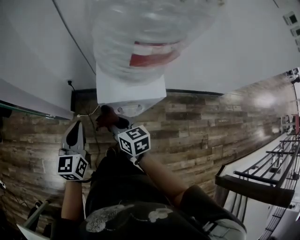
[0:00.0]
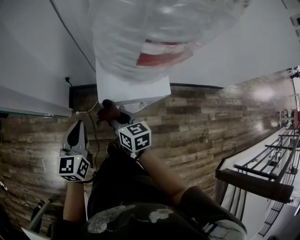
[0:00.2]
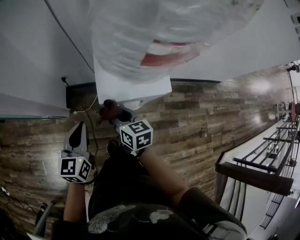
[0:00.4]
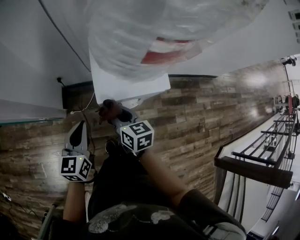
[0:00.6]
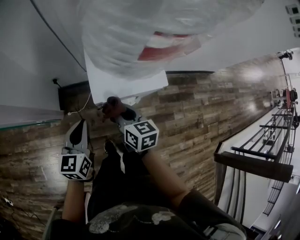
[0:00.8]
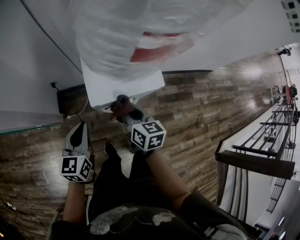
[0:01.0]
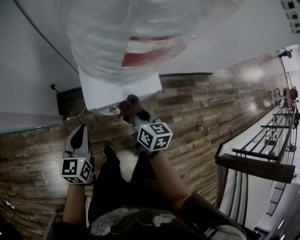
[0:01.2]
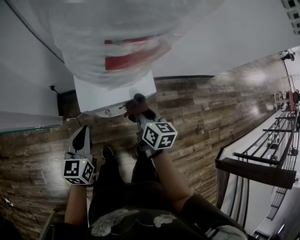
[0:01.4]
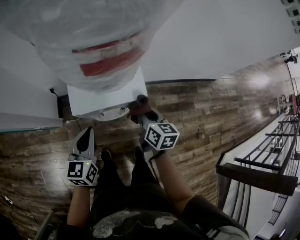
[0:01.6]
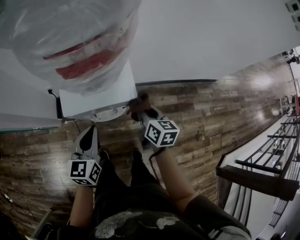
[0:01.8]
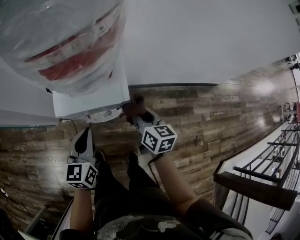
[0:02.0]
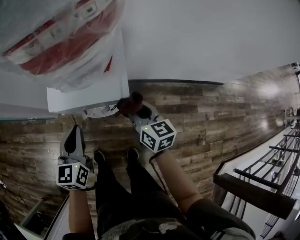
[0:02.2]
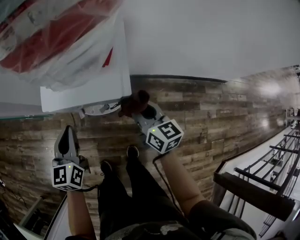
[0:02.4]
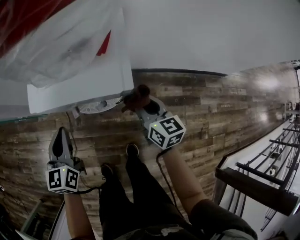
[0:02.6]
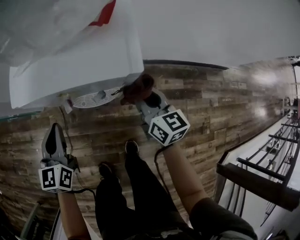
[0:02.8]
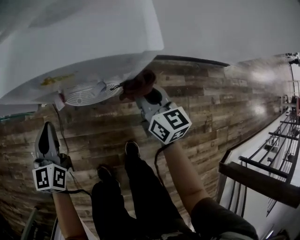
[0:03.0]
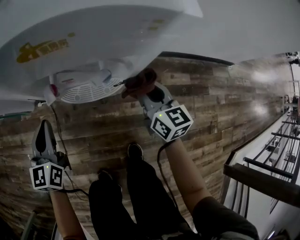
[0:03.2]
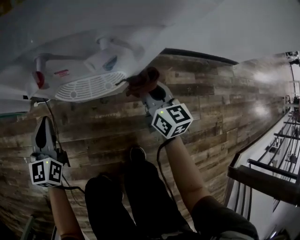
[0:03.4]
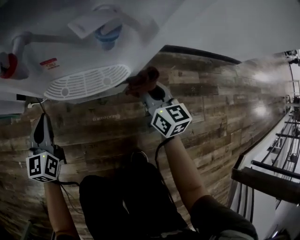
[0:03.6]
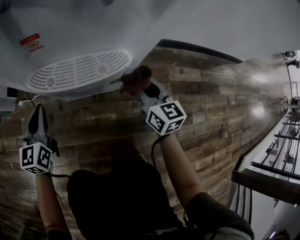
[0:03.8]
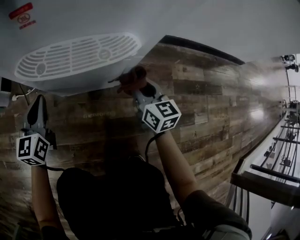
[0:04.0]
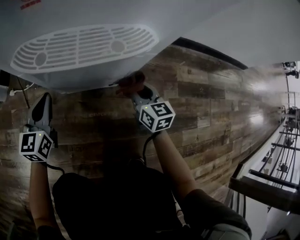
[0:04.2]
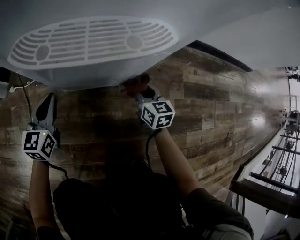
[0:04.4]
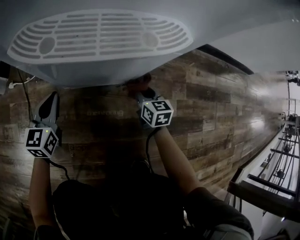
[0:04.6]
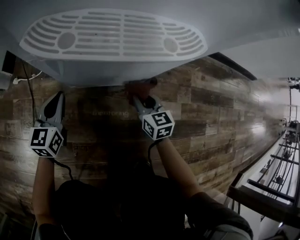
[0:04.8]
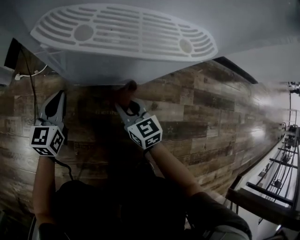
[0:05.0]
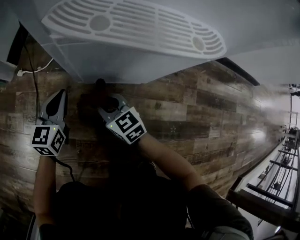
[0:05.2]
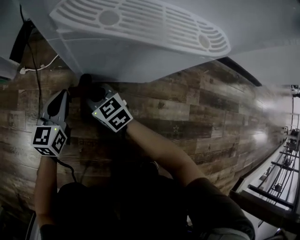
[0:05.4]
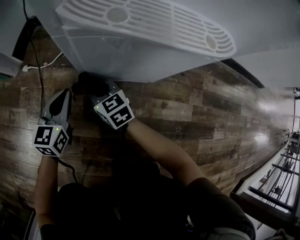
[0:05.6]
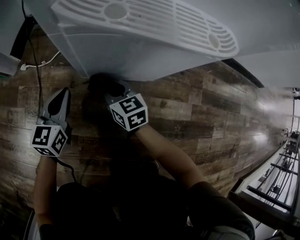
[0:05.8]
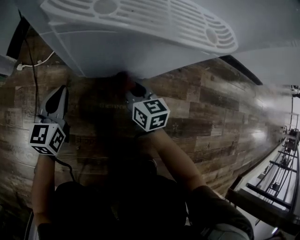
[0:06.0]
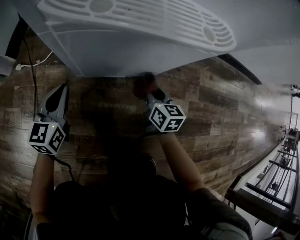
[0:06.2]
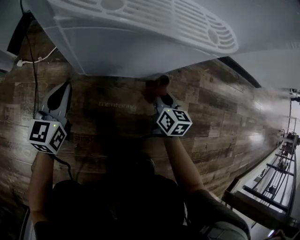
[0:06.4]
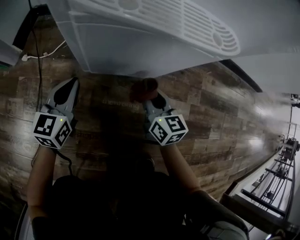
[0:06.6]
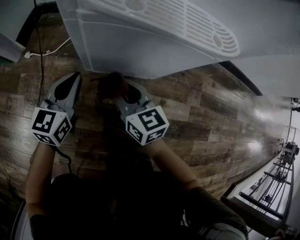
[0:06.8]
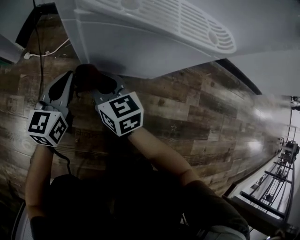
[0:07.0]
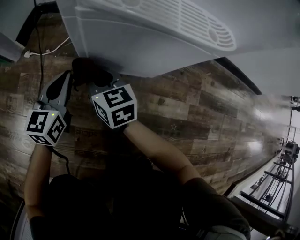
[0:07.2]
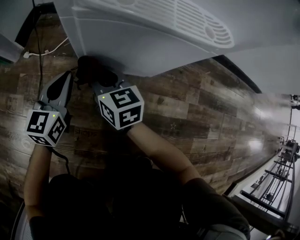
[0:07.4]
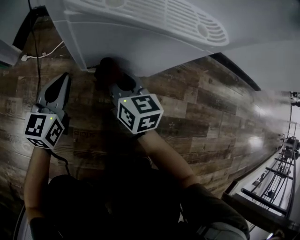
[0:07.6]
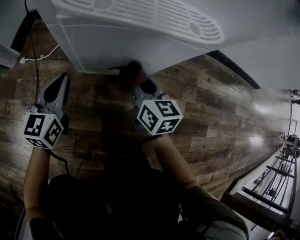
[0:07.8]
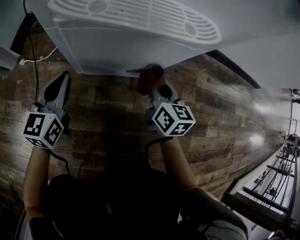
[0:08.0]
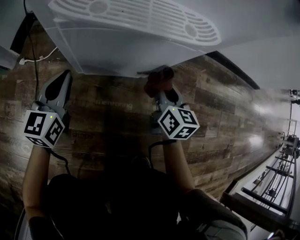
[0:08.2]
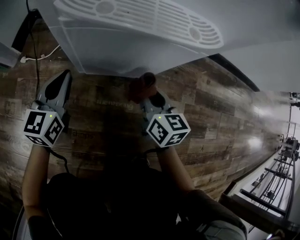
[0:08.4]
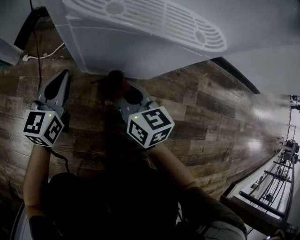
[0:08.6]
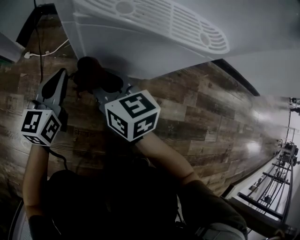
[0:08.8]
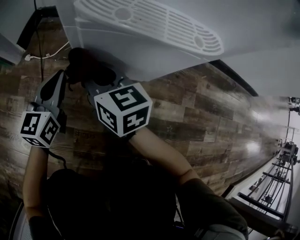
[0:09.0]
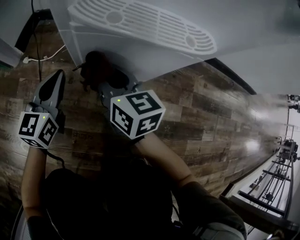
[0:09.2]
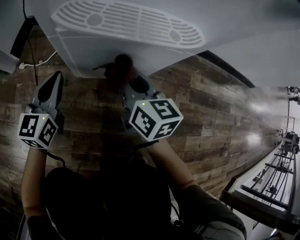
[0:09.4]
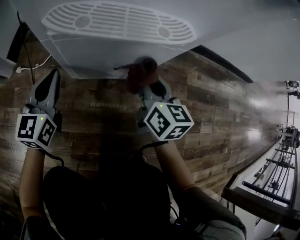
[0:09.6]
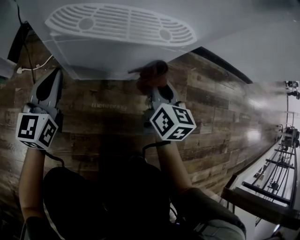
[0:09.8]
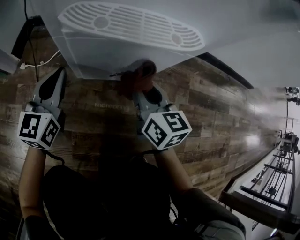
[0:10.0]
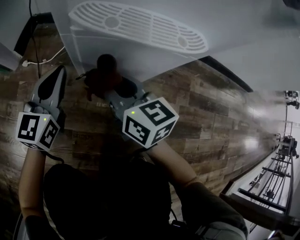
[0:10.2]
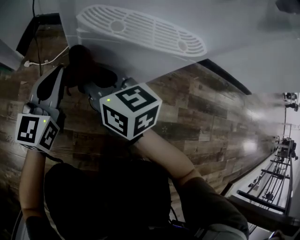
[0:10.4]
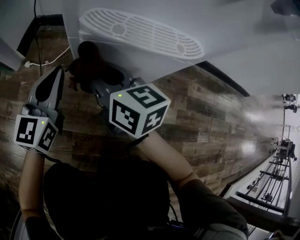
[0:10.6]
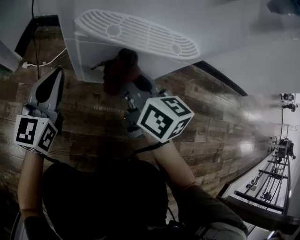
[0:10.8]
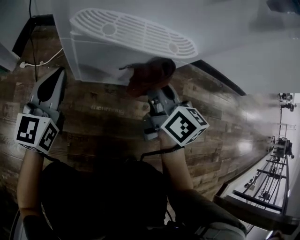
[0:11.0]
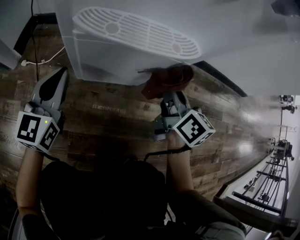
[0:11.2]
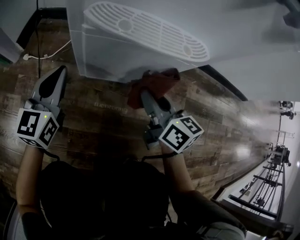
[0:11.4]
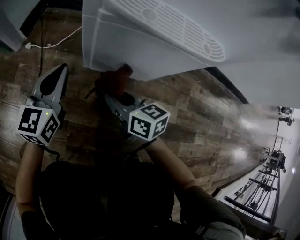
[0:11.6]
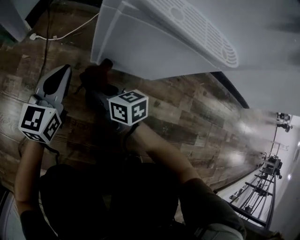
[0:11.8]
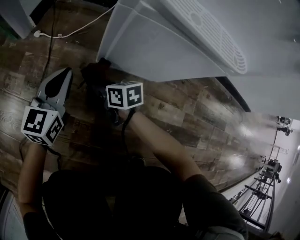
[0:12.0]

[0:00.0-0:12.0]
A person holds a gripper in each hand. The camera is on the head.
0:00.0 to 0:01.6: The left gripper travels to the right and downward by some 15 cm, while the right gripper is displaced to the right by approximately 20 cm, and changes its angle by some 30 degrees.
0:01.6 to 0:03.0: Both grippers move downward, roughly 20 cm. The right gripper turns by roughly 20 degrees.
0:03.0 to 0:04.4: The grippers both shift downward by some 40 cm.
0:04.4 to 0:06.0: The left gripper changes place by about 5 cm; the right gripper is displaced to the left by some 15 cm.
0:06.0 to 0:07.6: The right gripper moves left and right over approximately 30 cm, changing direction 2 times, while the left gripper is displaced upward by roughly 5 cm.
0:07.6 to 0:09.0: The right gripper travels upward by approximately 5 cm, and travels to the right and back again, some 20 cm each way.
0:09.0 to 0:10.4: The grippers both shift upward by approximately 5 cm. The right gripper reaches approximately 25 cm to the right, then returns.
0:10.4 to 0:12.0: The right gripper travels downward by approximately 25 cm, and turns by approximately 30 degrees, while the left gripper travels downward by approximately 10 cm.

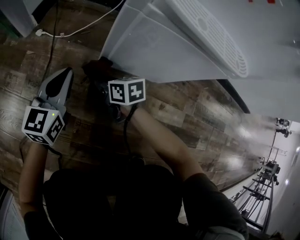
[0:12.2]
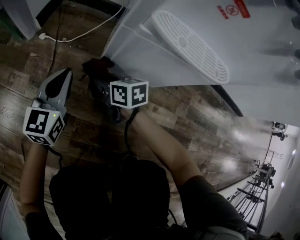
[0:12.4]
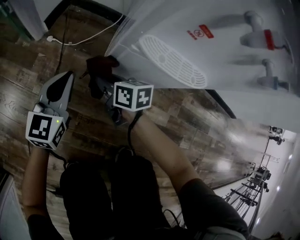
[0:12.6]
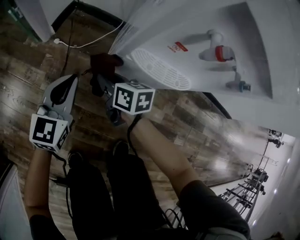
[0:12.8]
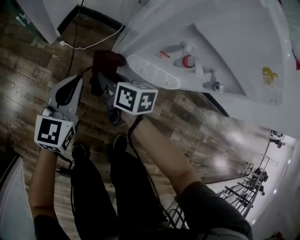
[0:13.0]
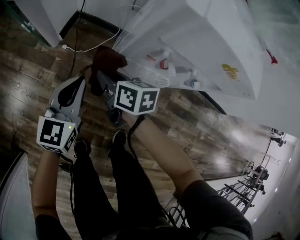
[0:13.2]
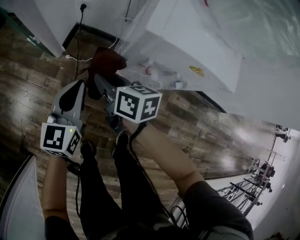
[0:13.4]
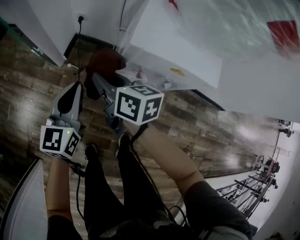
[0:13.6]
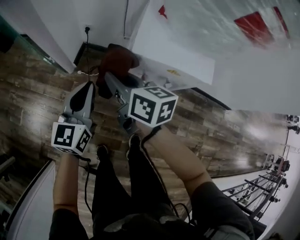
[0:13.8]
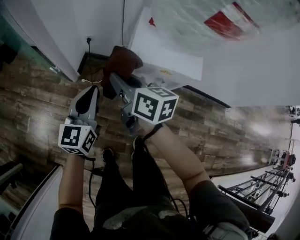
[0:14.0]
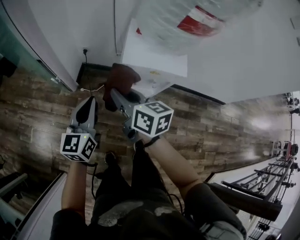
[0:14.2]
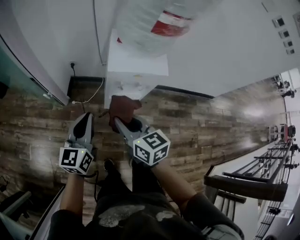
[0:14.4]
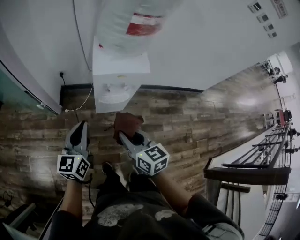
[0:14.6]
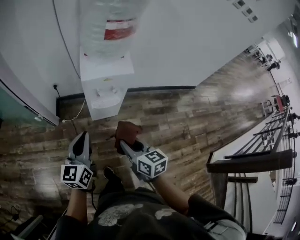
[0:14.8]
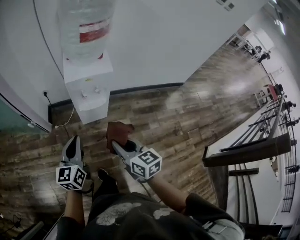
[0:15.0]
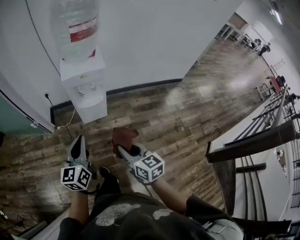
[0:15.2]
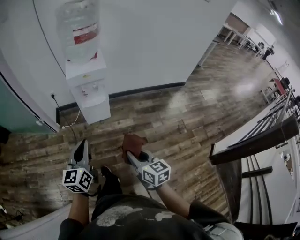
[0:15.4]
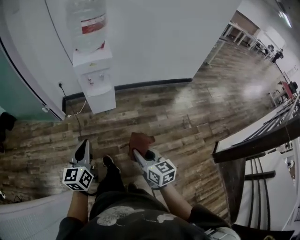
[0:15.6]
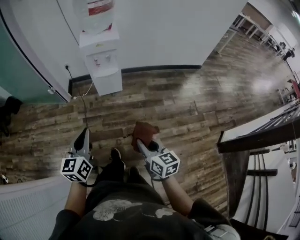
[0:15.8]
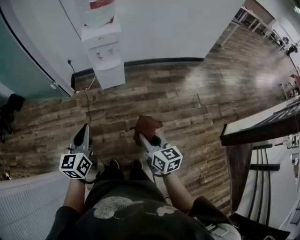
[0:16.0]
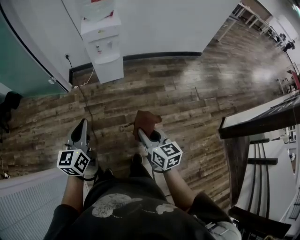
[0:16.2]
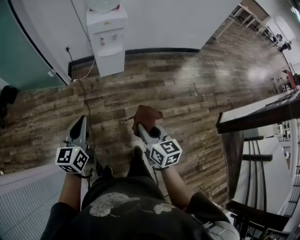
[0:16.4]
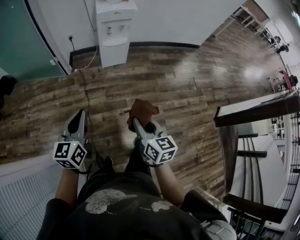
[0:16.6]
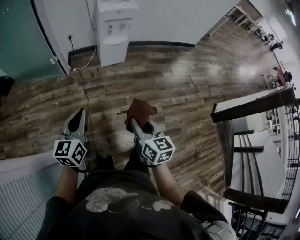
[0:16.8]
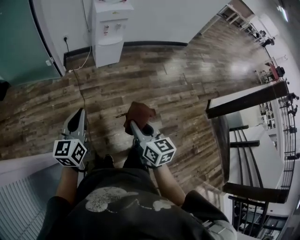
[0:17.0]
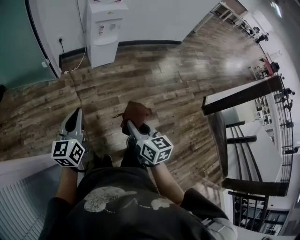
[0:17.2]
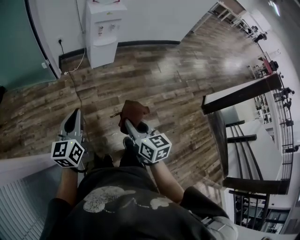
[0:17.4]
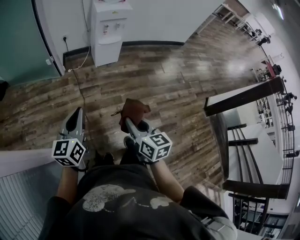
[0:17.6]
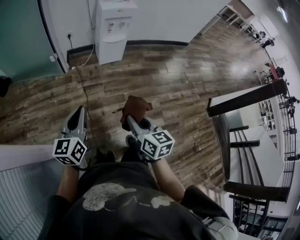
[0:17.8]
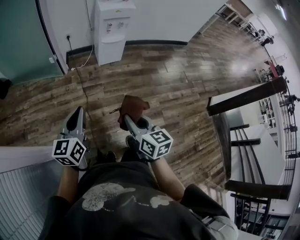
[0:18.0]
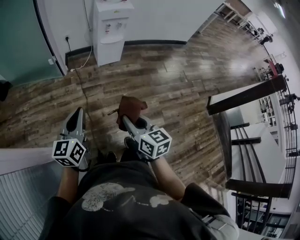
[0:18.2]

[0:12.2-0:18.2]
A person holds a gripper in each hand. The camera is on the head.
0:12.2 to 0:13.8: The two grippers go approximately 60 cm upward. The right gripper turns by approximately 20 degrees.
0:13.8 to 0:15.2: The left gripper shifts by approximately 35 cm. The right gripper changes place by some 50 cm, and turns by some 30 degrees.
0:15.2 to 0:16.6: The right gripper shifts approximately 30 cm backward, while the left gripper is displaced backward and to the left by roughly 35 cm.
0:16.6 to 0:18.2: Both grippers travel together to the left and backward, roughly 15 cm.

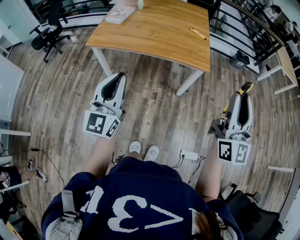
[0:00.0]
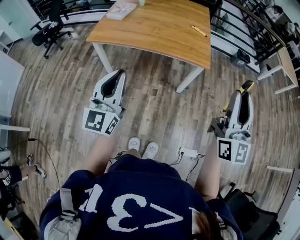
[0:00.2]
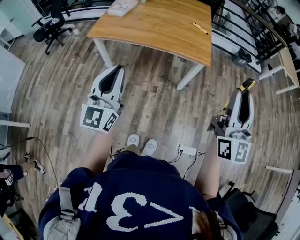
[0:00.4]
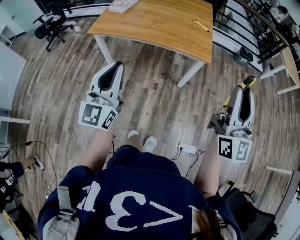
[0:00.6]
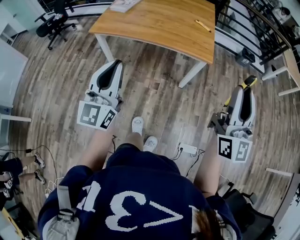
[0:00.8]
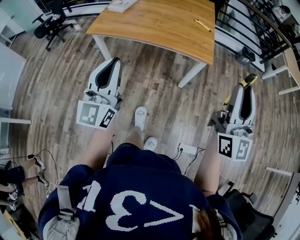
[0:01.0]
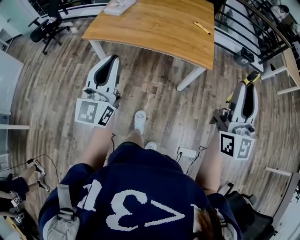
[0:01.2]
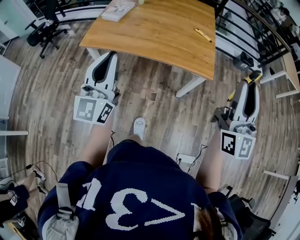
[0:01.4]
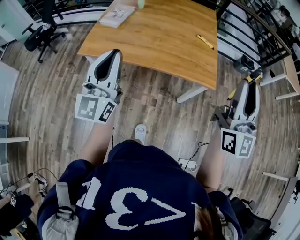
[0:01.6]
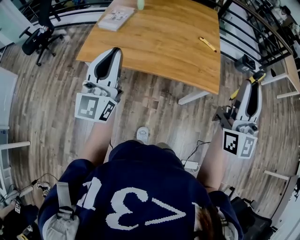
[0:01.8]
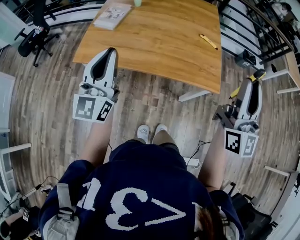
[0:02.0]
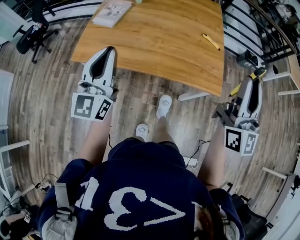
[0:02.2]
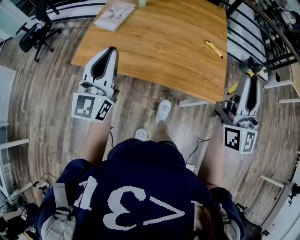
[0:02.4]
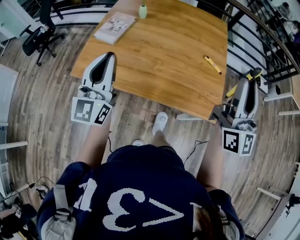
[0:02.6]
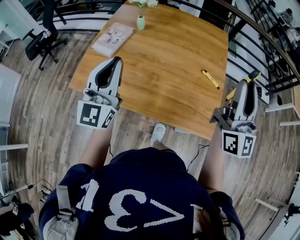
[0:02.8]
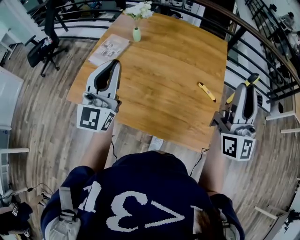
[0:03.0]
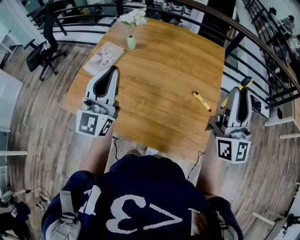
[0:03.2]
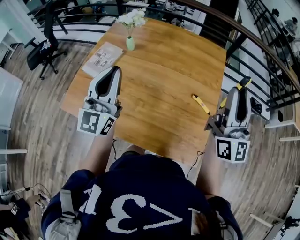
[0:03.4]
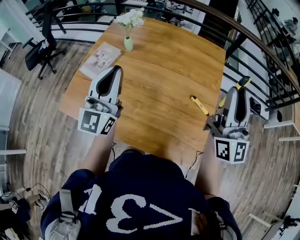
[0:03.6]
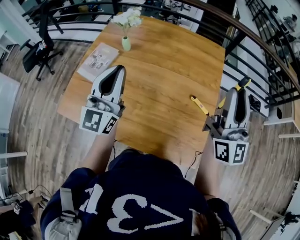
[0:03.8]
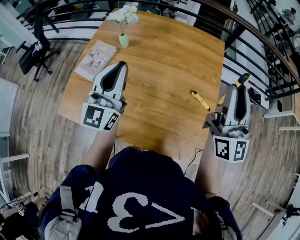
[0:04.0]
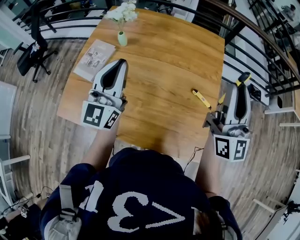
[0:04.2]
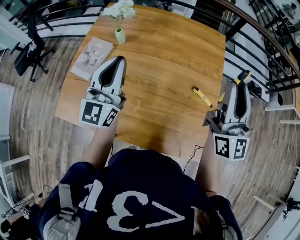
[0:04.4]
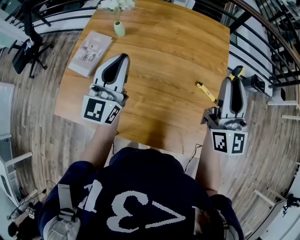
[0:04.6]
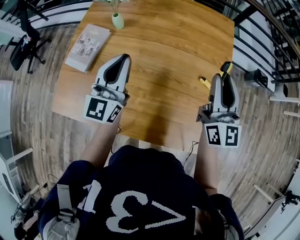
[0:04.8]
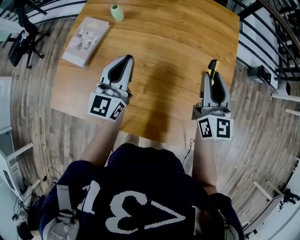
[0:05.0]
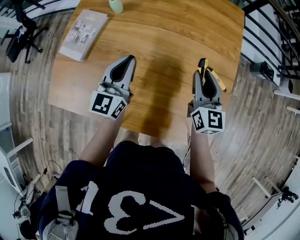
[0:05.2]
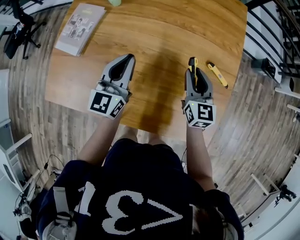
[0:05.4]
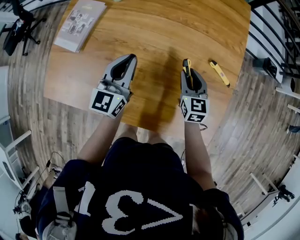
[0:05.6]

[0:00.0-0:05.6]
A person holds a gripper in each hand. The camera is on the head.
0:00.0 to 0:01.4: Both grippers travel together forward, roughly 15 cm.
0:01.4 to 0:02.8: Both grippers travel together forward, about 35 cm.
0:02.8 to 0:04.2: The grippers both shift forward by some 20 cm.
0:04.2 to 0:05.6: The right gripper goes some 40 cm downward, and points its fingers about 50 degrees further downward. Meanwhile the left gripper heads downward, covering roughly 25 cm, and rotates roughly 20 degrees.
